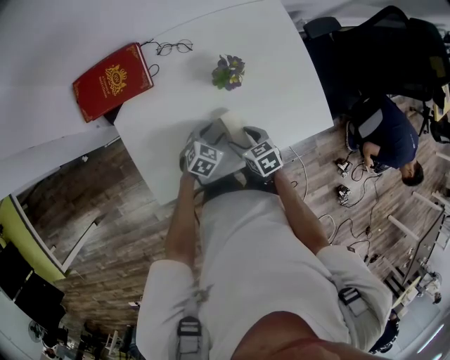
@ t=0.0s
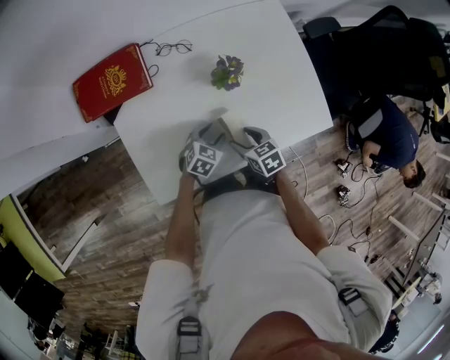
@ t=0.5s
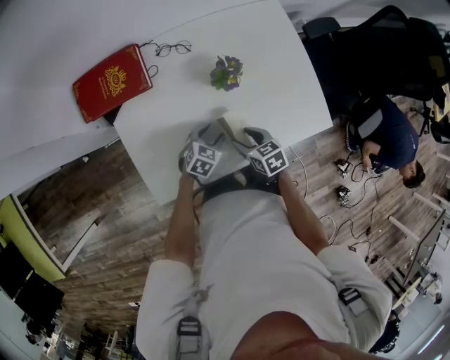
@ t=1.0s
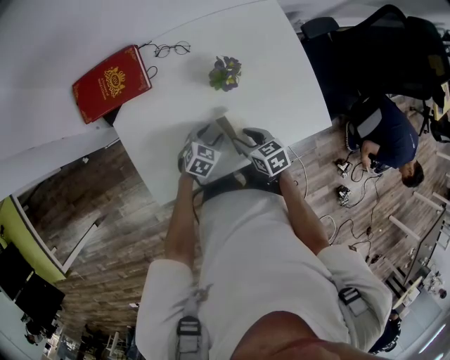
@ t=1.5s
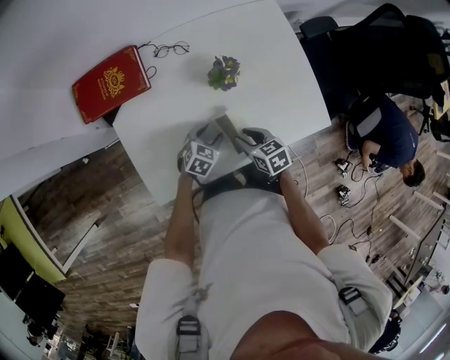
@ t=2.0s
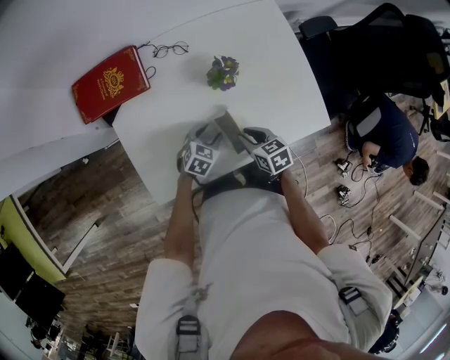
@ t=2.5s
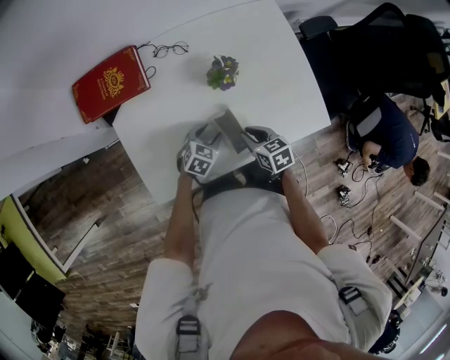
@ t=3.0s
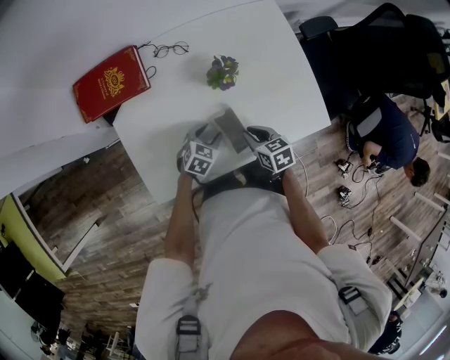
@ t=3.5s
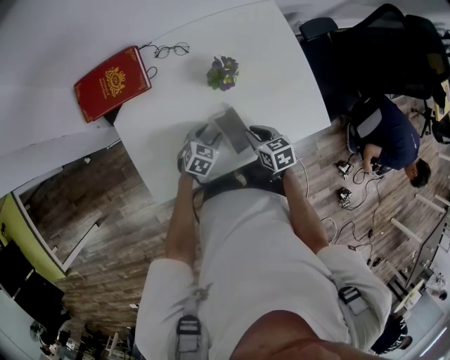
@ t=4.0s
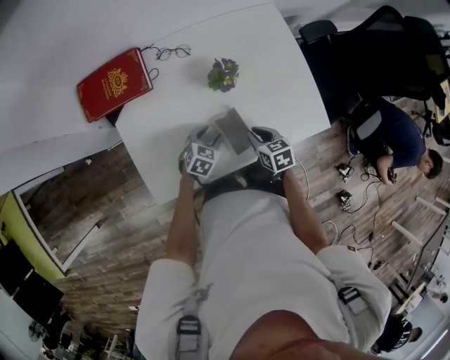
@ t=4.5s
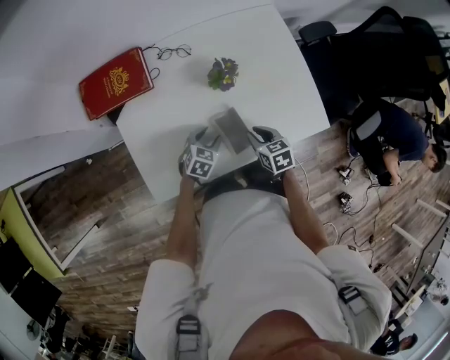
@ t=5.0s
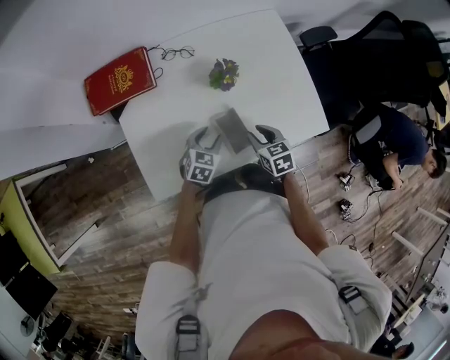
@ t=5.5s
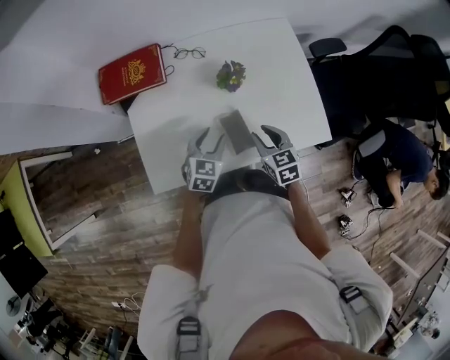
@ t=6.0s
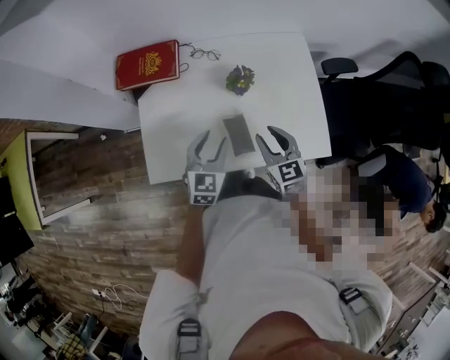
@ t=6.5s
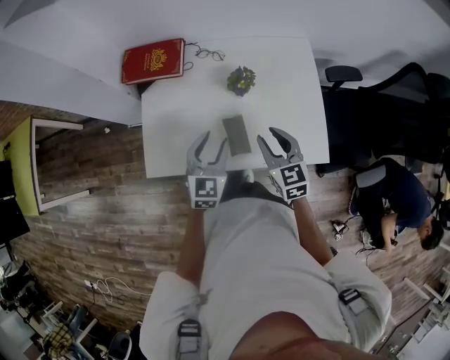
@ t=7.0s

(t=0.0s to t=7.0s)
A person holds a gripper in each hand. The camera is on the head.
t=0.0s - t=2.0s: The right gripper closes up.
t=2.0s - t=5.0s: The grippers make only small movements.
t=5.0s - t=7.0s: The grippers both shift upward by roughly 20 cm. The right gripper changes its angle by approximately 30 degrees. Meanwhile the left gripper rotates some 40 degrees.

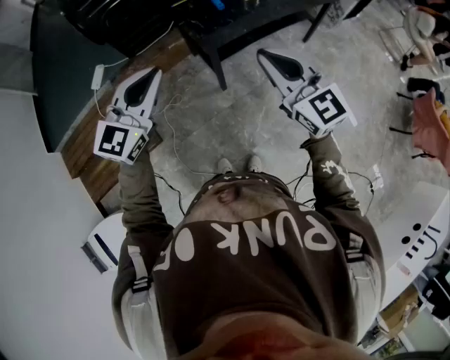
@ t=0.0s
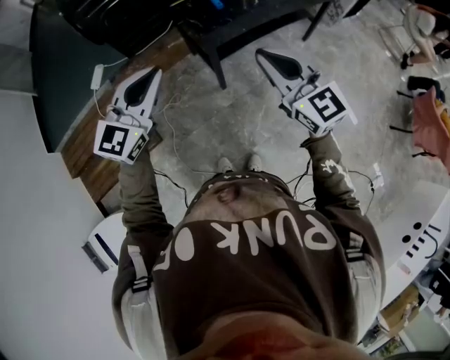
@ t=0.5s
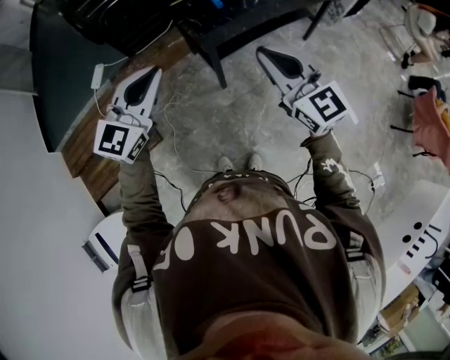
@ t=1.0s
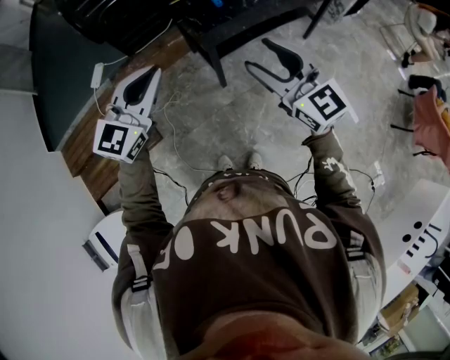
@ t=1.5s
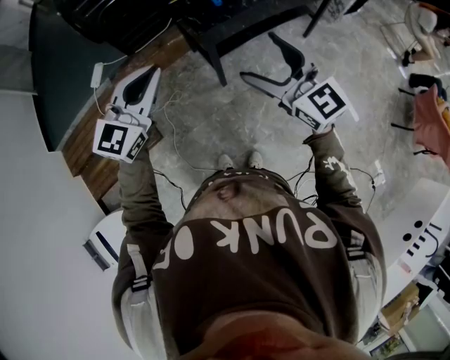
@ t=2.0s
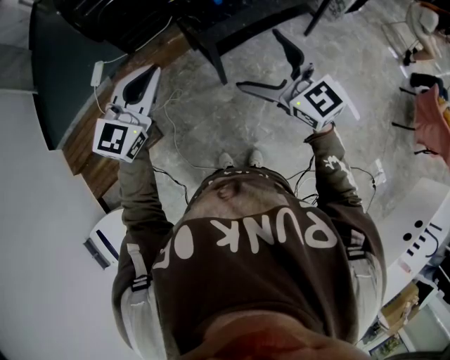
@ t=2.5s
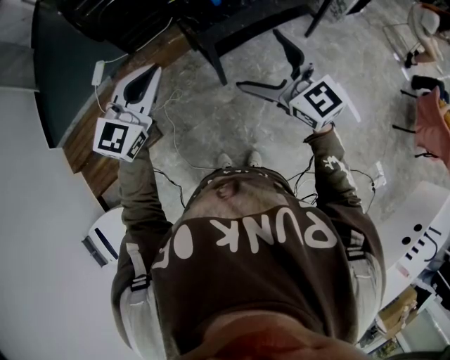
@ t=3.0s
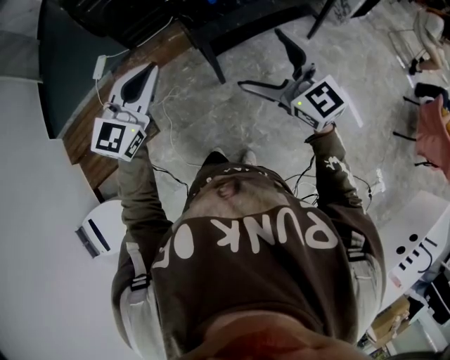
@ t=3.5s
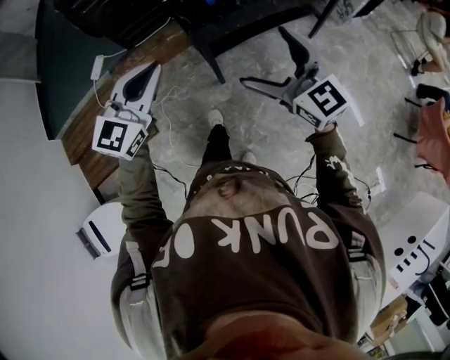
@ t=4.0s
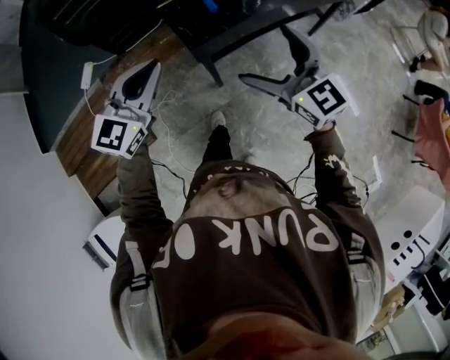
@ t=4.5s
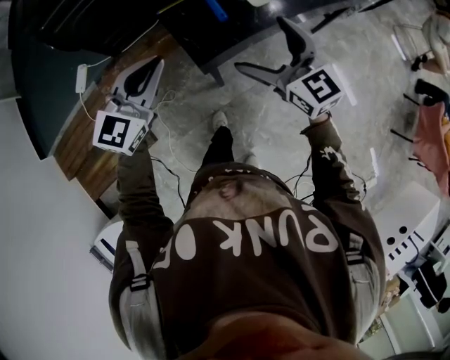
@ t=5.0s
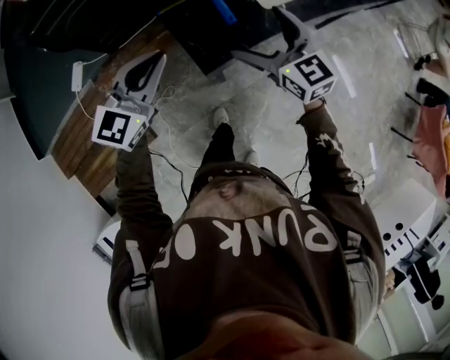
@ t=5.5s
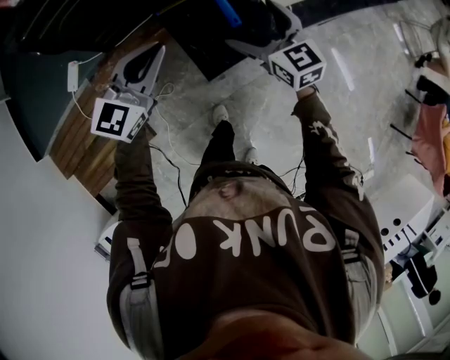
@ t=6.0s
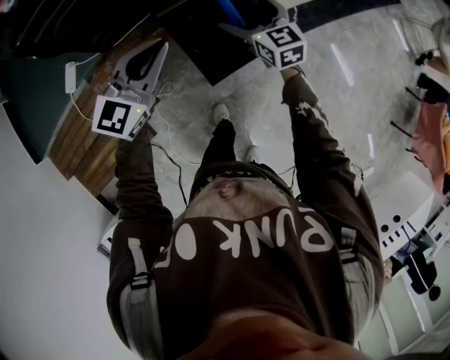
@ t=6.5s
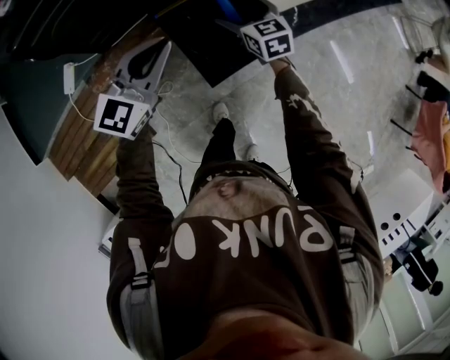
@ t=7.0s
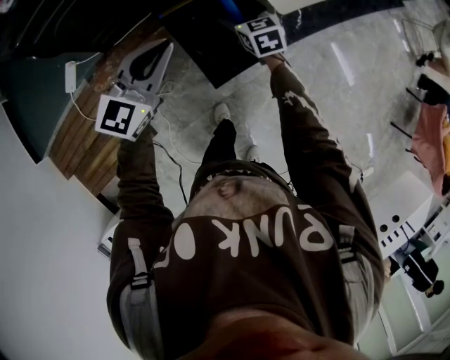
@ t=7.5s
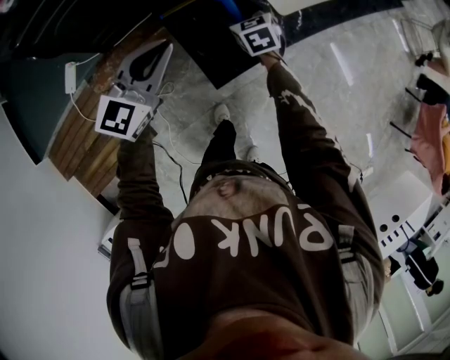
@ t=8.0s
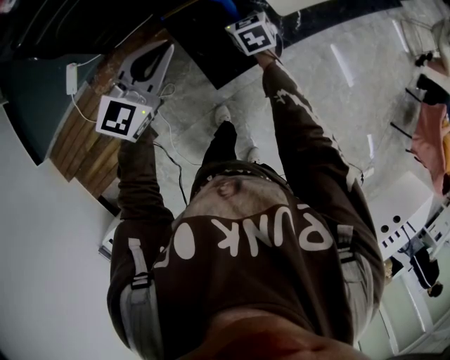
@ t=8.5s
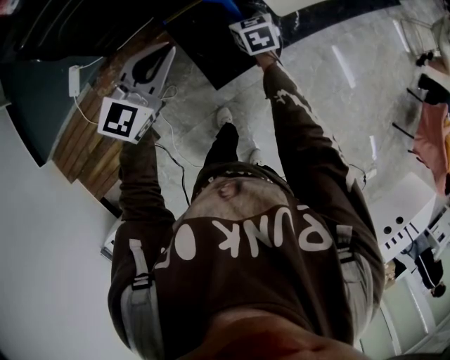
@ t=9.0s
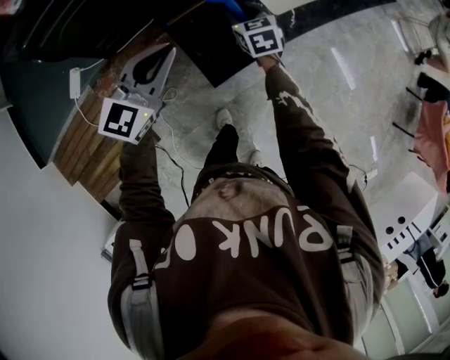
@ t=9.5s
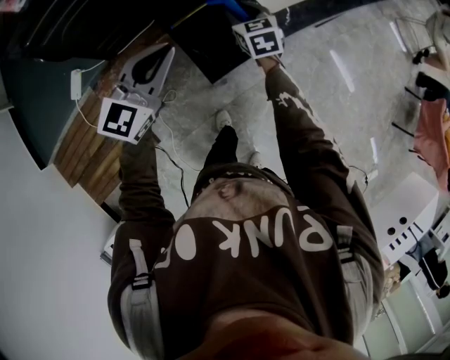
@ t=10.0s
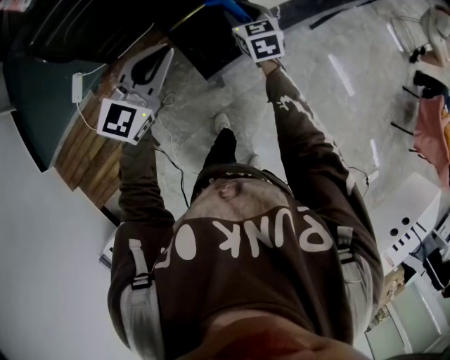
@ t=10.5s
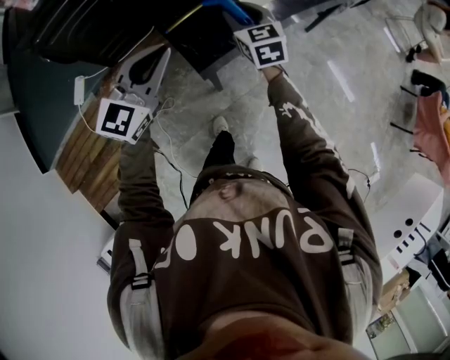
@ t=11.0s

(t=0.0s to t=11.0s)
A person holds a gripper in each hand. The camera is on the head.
t=0.0s - t=2.0s: The right gripper opens up.
t=2.0s - t=3.5s: The grippers both shift to the right by some 5 cm.
t=3.5s - t=5.5s: The two grippers go some 35 cm forward.
t=5.5s - t=7.5s: The right gripper moves downward and forward, about 25 cm, and changes its angle by about 30 degrees. Meanwhile the left gripper travels forward by approximately 10 cm.
t=7.5s - t=9.0s: The right gripper closes up.
t=9.0s - t=11.0s: The left gripper is displaced backward, upward and to the right by roughly 15 cm. Meanwhile the right gripper travels upward, backward and to the right by some 20 cm, and swivels approximately 20 degrees.

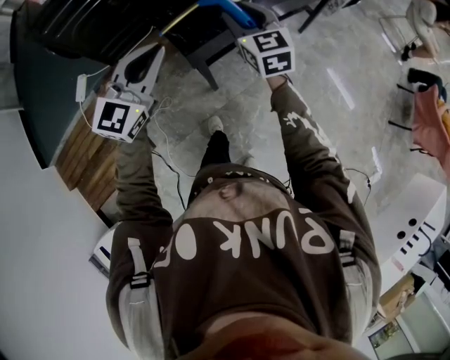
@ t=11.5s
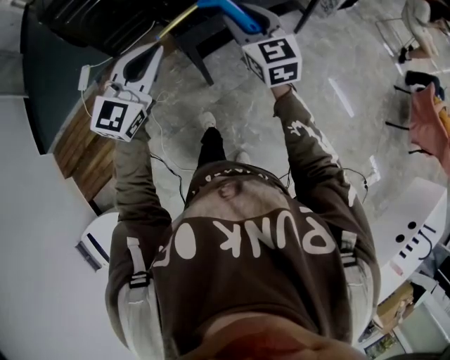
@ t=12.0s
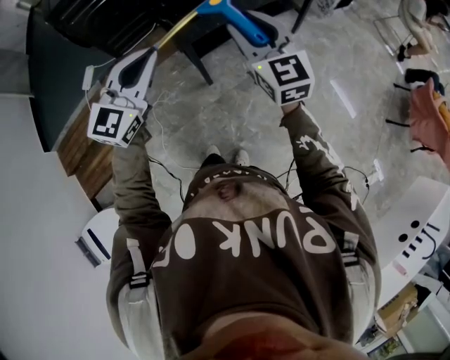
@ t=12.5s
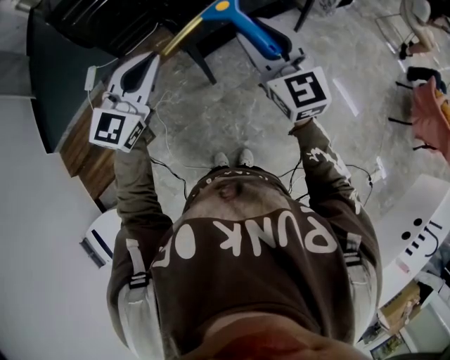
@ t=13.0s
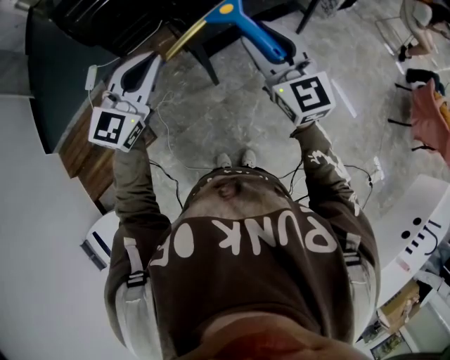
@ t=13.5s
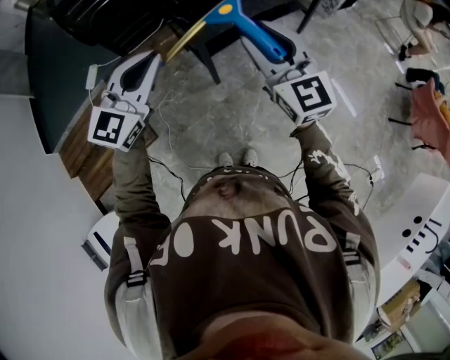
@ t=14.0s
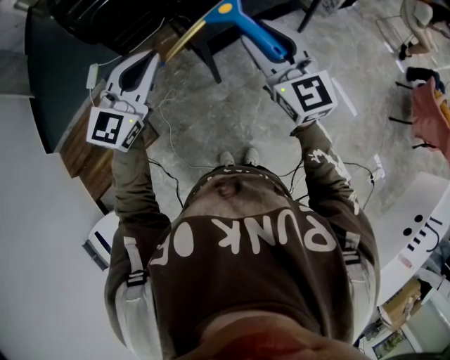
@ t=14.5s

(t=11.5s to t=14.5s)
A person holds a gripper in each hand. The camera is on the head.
t=11.5s - t=13.0s: The right gripper goes some 30 cm backward, upward and to the right; the left gripper shifts about 20 cm backward.
t=13.0s - t=14.5s: The two grippers go some 5 cm to the left.

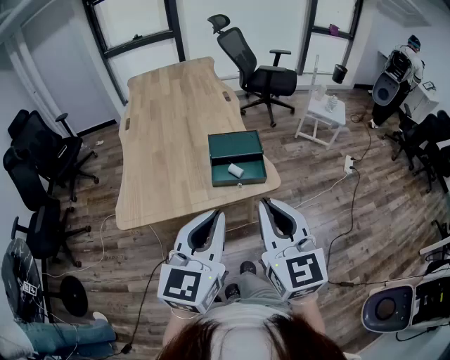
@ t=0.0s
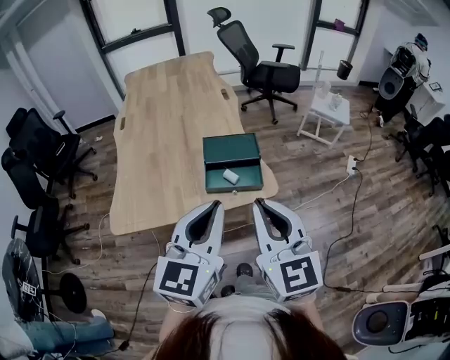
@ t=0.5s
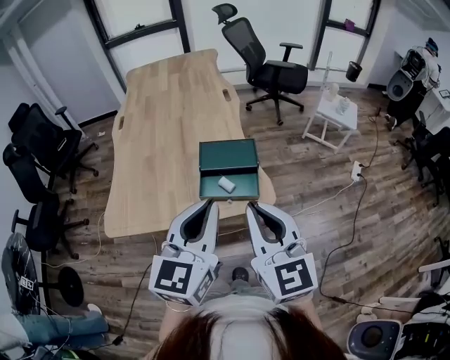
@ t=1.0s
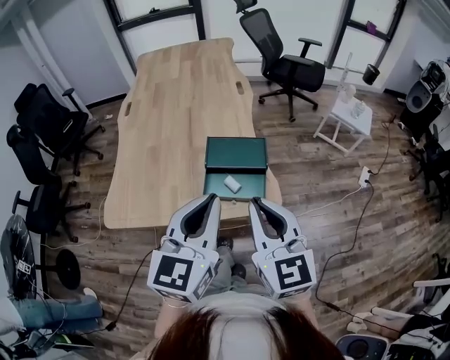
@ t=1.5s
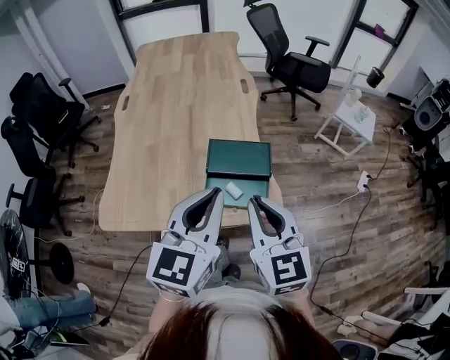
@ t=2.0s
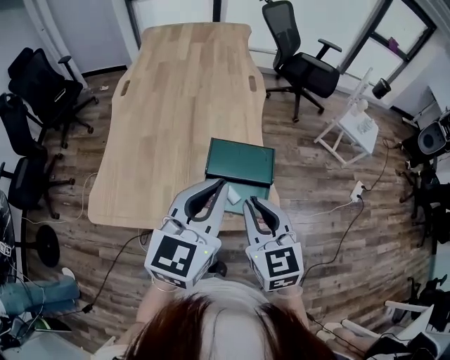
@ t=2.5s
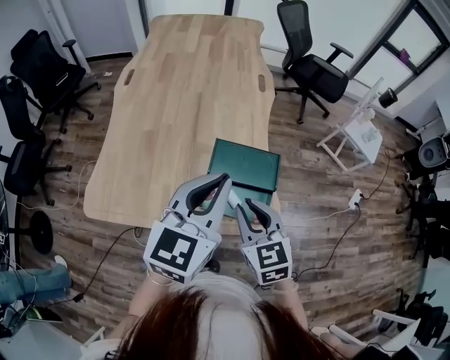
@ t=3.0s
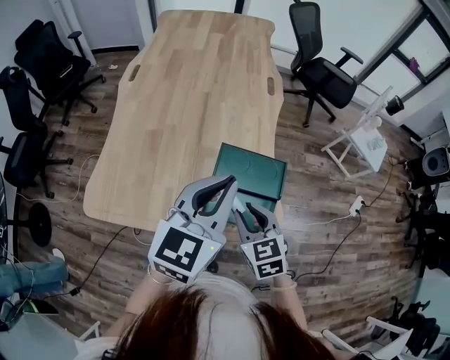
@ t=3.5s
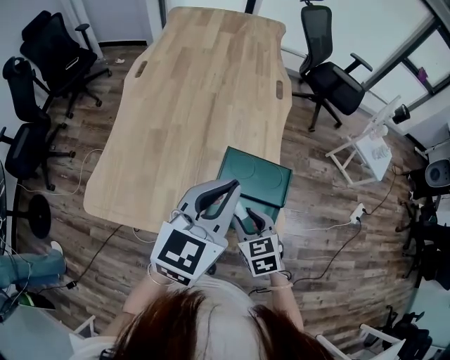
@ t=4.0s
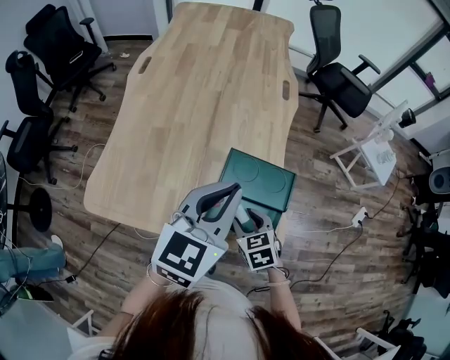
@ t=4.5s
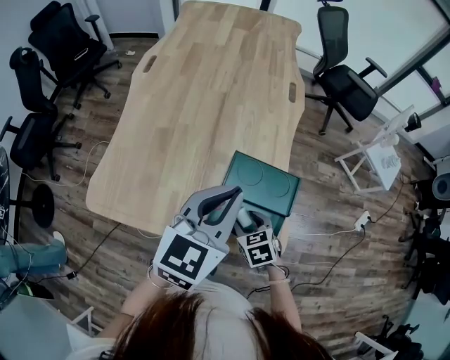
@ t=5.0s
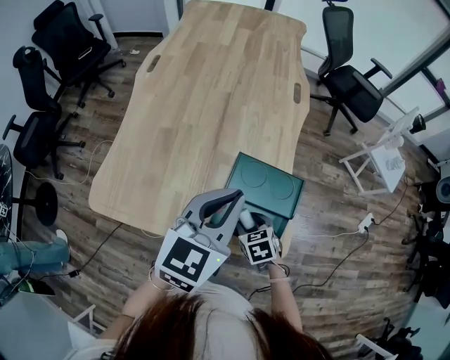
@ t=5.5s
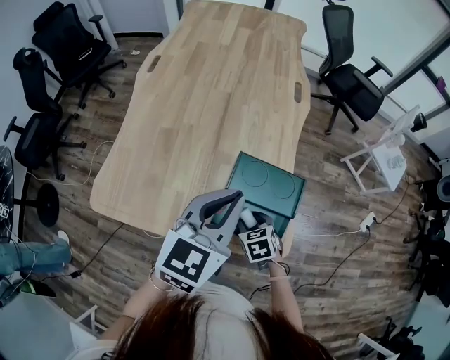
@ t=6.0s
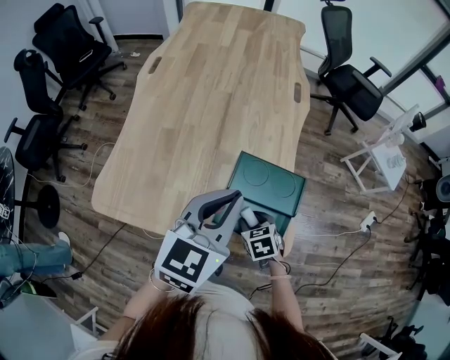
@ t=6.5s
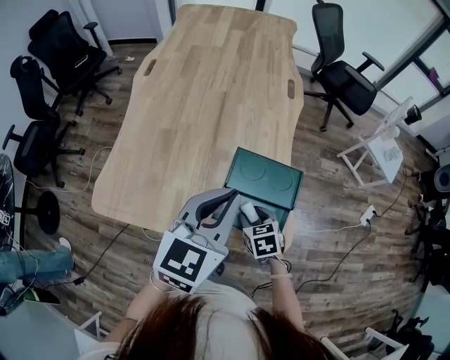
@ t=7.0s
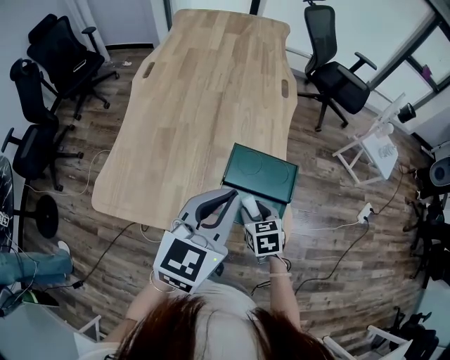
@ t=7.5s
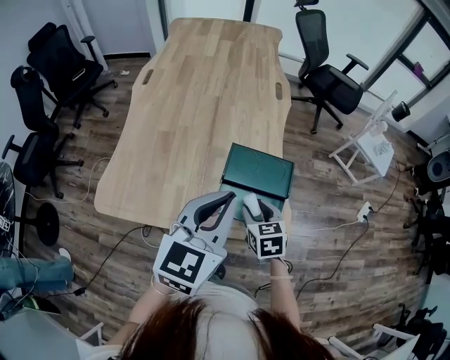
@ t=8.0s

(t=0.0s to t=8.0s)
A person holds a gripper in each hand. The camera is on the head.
t=0.0s - t=2.0s: Both grippers move forward, about 20 cm.
t=2.0s - t=4.0s: The right gripper moves downward and forward, about 25 cm, angles its fingers downward, by approximately 30 degrees, and opens up, while the left gripper moves forward, some 15 cm.
t=4.0s - t=6.0s: The right gripper shifts roughly 10 cm downward.
t=6.0s - t=8.0s: The left gripper is displaced backward by approximately 10 cm, while the right gripper shifts about 10 cm upward, and changes its angle by approximately 20 degrees.
